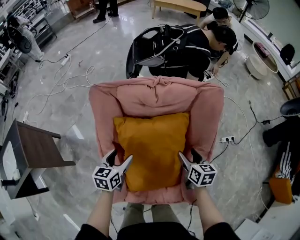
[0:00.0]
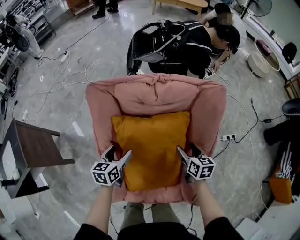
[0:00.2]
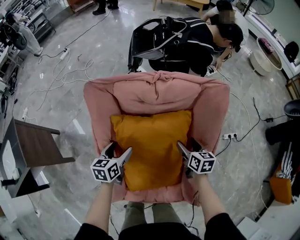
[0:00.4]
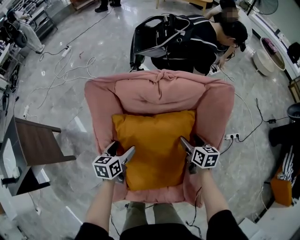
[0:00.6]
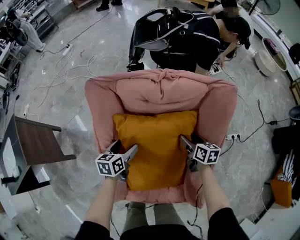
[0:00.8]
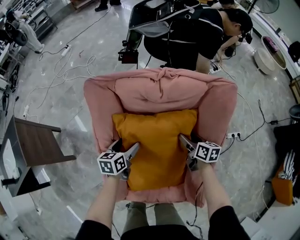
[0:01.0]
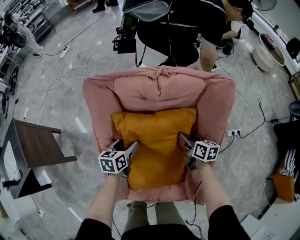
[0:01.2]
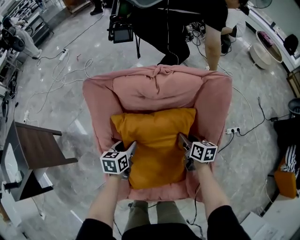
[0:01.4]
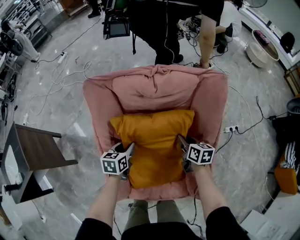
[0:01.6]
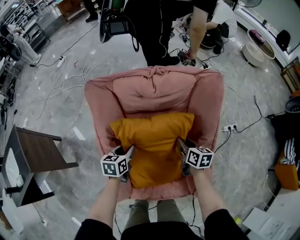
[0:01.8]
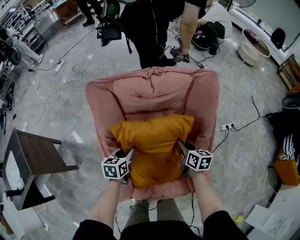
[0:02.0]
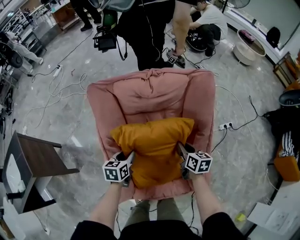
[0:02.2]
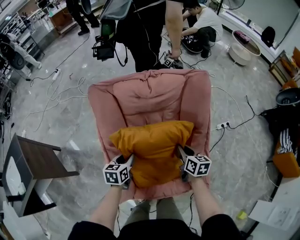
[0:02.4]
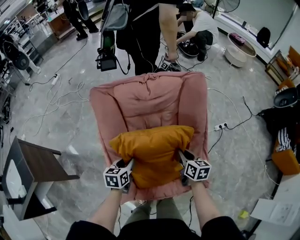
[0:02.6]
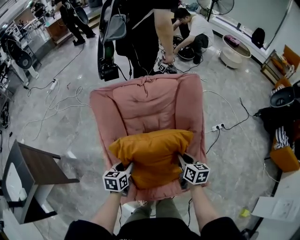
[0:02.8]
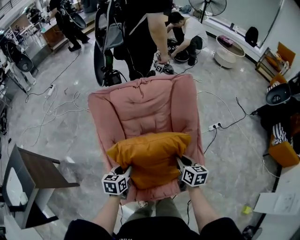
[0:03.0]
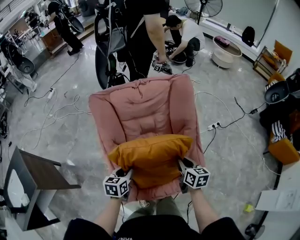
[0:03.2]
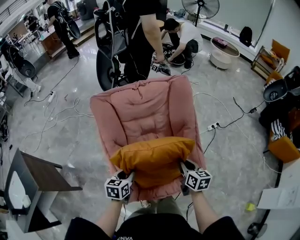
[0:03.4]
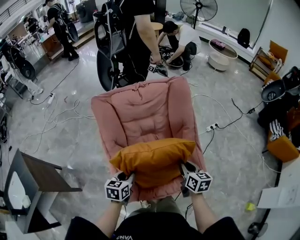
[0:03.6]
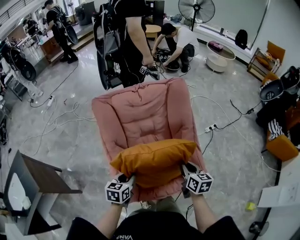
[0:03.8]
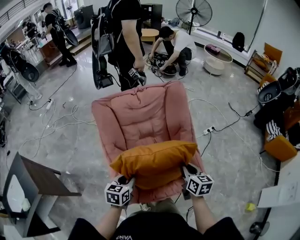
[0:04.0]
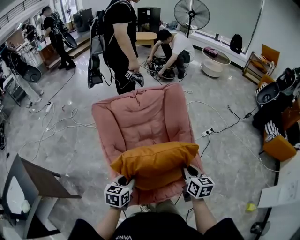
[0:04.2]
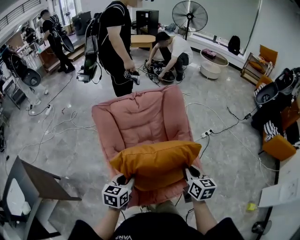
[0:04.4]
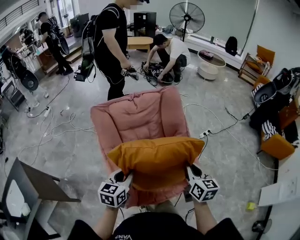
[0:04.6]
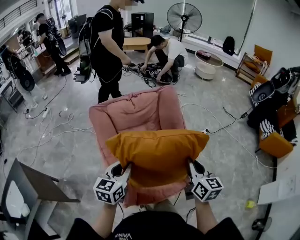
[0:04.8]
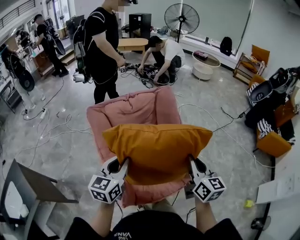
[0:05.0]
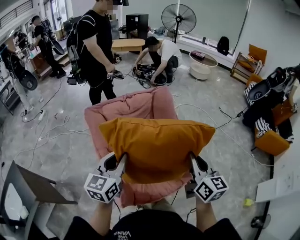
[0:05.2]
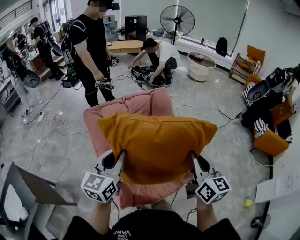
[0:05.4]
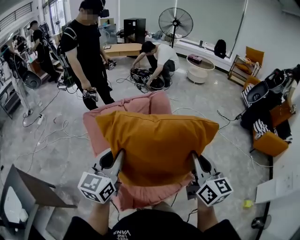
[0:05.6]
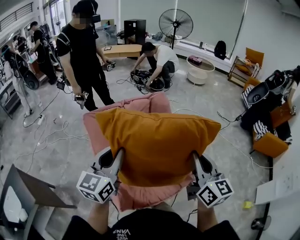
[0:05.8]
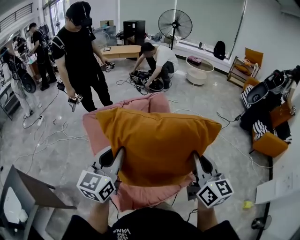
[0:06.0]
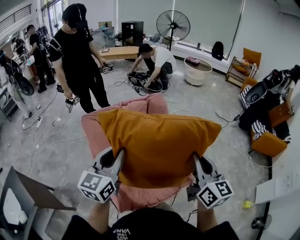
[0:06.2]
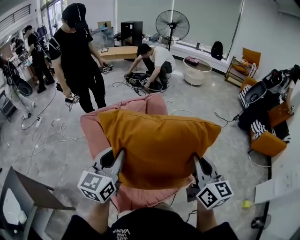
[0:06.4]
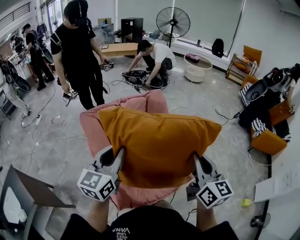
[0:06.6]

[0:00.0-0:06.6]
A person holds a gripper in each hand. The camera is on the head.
0.0 to 1.6 s: The two grippers go some 5 cm downward. The right gripper closes its fingers, while the left gripper closes its fingers.
1.6 to 3.2 s: The two grippers go about 20 cm backward and upward.
3.2 to 5.0 s: The right gripper travels upward and backward by approximately 25 cm, and swivels approximately 30 degrees; the left gripper is displaced upward by approximately 25 cm, and rotates roughly 30 degrees.
5.0 to 6.6 s: Both grippers move upward, approximately 10 cm.

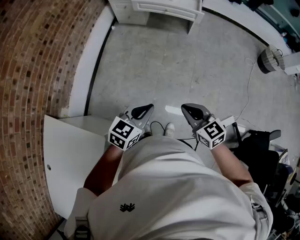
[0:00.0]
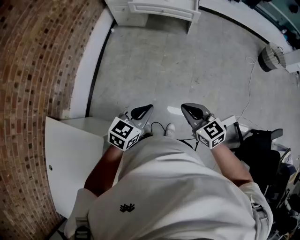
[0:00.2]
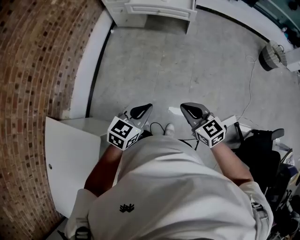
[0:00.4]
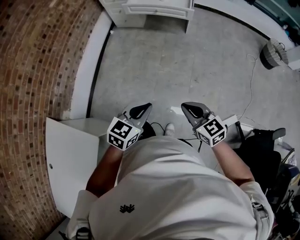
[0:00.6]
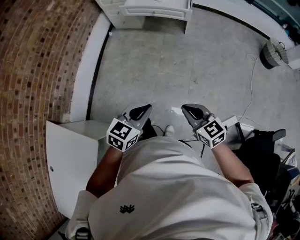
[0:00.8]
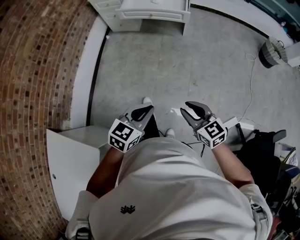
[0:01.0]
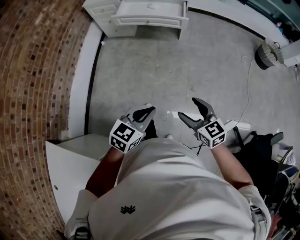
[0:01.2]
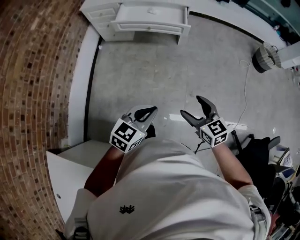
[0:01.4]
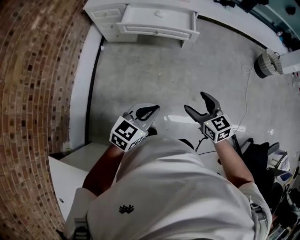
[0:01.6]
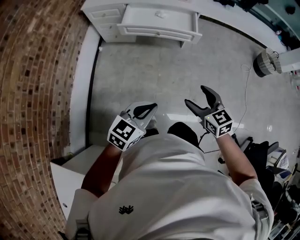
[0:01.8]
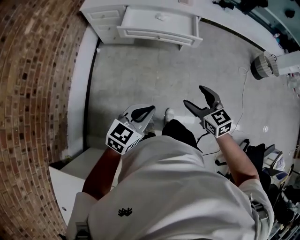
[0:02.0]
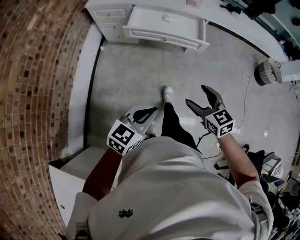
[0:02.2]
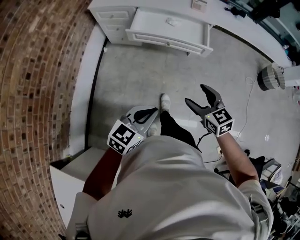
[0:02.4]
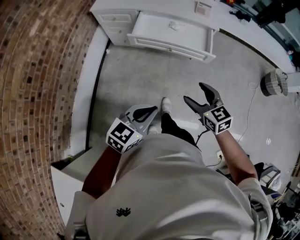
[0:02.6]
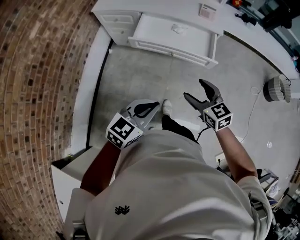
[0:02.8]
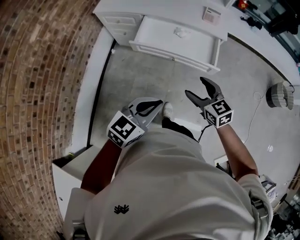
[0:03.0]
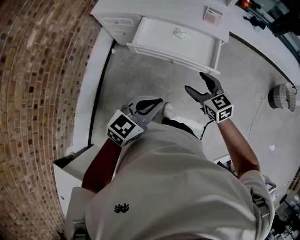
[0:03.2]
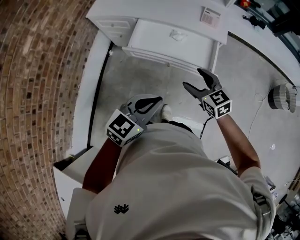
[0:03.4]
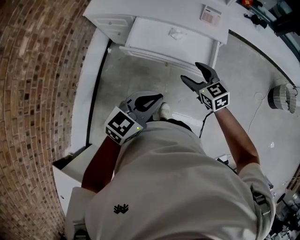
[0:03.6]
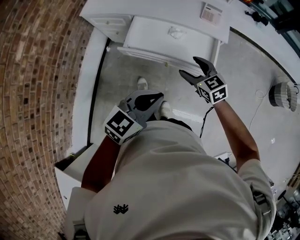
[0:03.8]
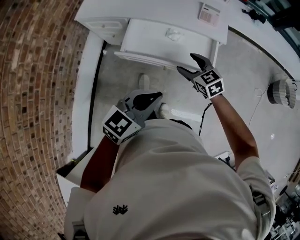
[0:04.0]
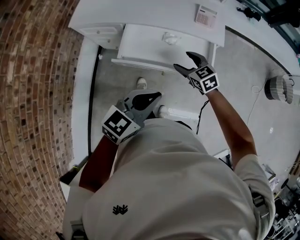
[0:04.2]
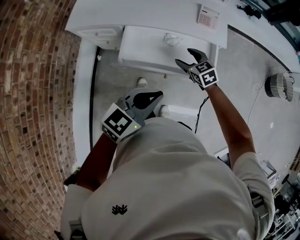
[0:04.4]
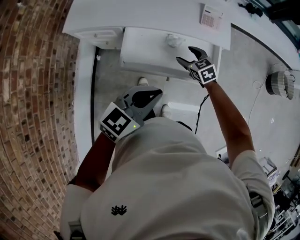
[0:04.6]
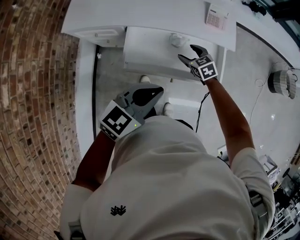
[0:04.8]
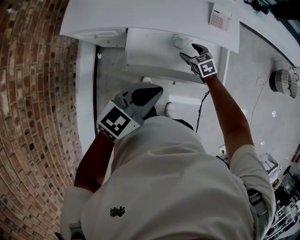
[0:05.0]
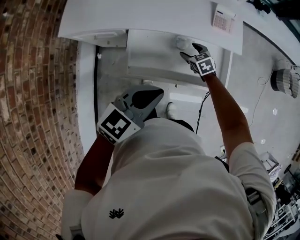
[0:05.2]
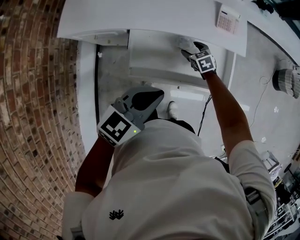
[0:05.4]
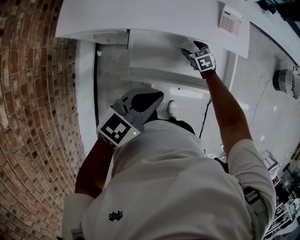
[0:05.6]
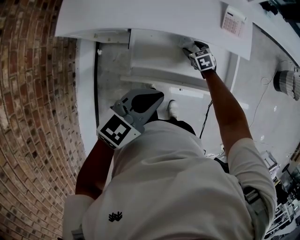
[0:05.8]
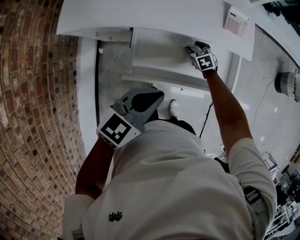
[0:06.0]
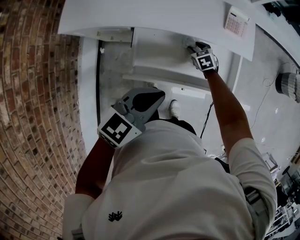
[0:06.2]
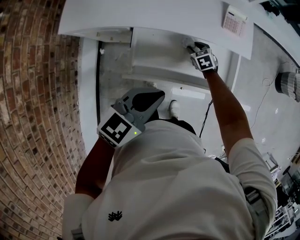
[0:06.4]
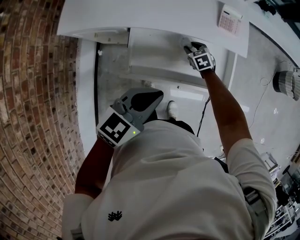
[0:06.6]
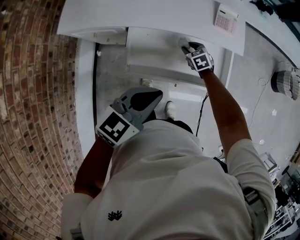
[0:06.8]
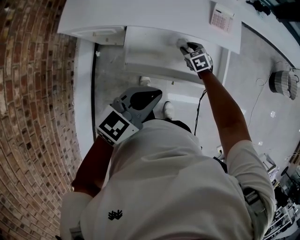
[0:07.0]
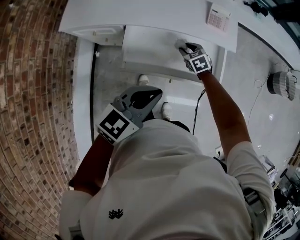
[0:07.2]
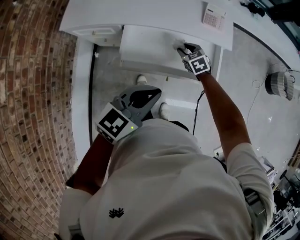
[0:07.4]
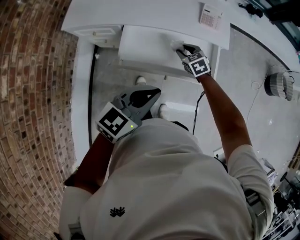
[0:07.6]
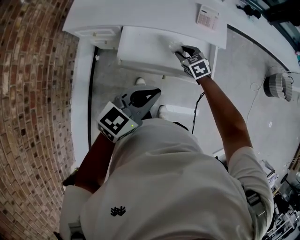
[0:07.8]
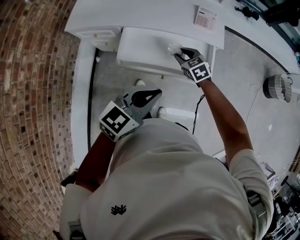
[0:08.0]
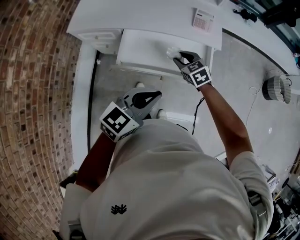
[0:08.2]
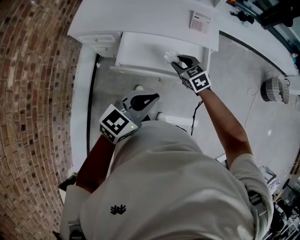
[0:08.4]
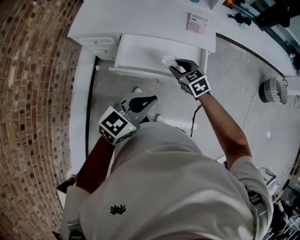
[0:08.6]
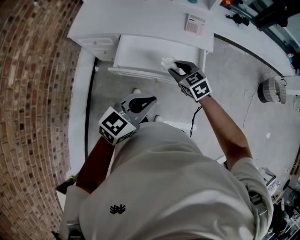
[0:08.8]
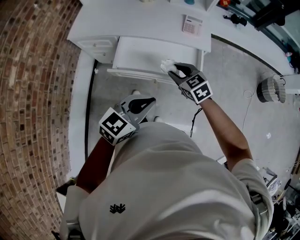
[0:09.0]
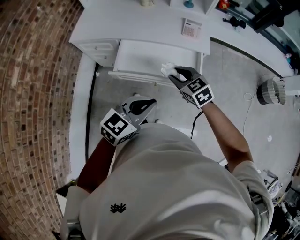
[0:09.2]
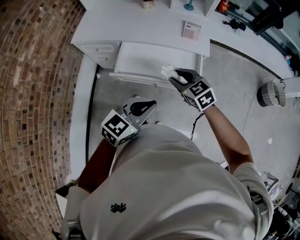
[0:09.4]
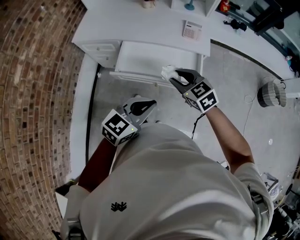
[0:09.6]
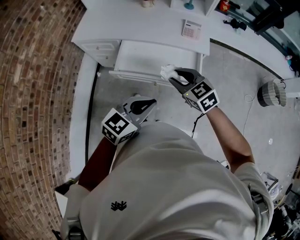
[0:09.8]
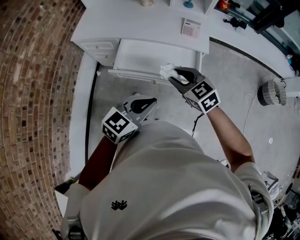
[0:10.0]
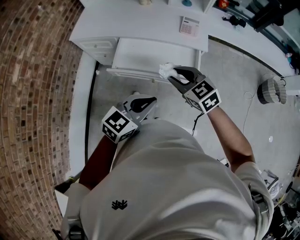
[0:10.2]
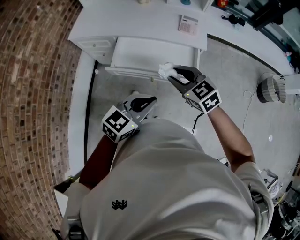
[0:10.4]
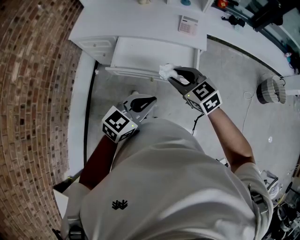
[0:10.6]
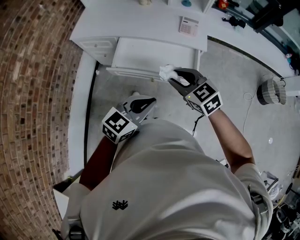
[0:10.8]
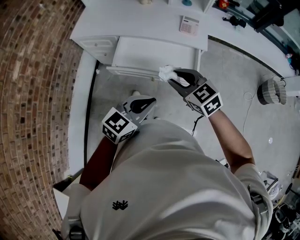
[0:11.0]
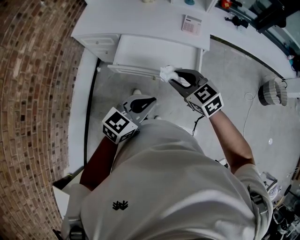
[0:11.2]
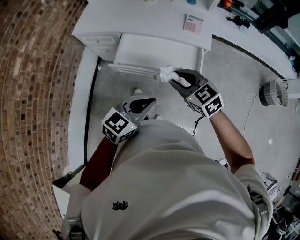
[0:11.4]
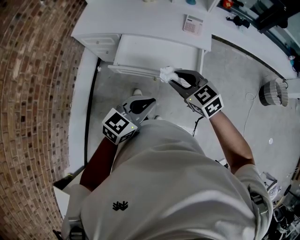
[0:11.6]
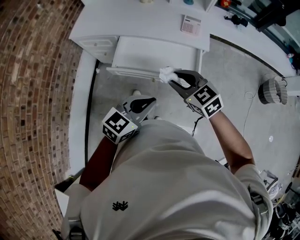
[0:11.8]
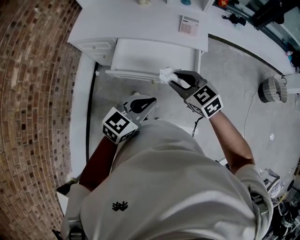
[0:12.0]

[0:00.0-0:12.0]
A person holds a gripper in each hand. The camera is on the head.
0.0 to 1.6 s: The grippers both shift forward by about 25 cm. The right gripper opens its fingers.
1.6 to 3.0 s: Both grippers travel together forward, some 30 cm.
3.0 to 4.4 s: The right gripper moves forward and downward, some 35 cm; the left gripper is displaced forward by approximately 25 cm.
4.4 to 6.0 s: The right gripper heads downward and forward, covering about 25 cm, and rotates approximately 20 degrees; the left gripper heads forward, to the left and downward, covering some 15 cm.
6.0 to 7.6 s: The left gripper heads to the right, backward and upward, covering some 15 cm; the right gripper goes roughly 15 cm upward and backward.
7.6 to 9.0 s: The left gripper moves backward, roughly 10 cm, while the right gripper shifts about 20 cm upward and backward.
9.0 to 10.4 s: The right gripper moves upward and backward, roughly 10 cm.
10.4 to 12.0 s: The grippers move only a little.

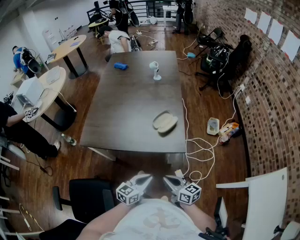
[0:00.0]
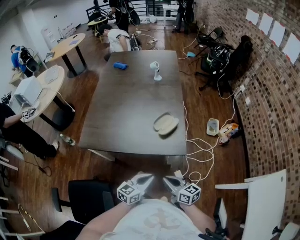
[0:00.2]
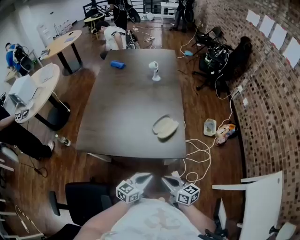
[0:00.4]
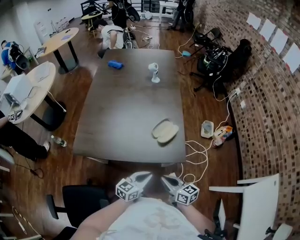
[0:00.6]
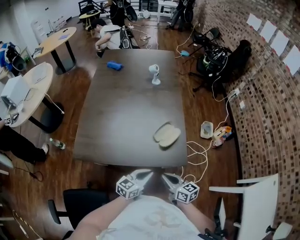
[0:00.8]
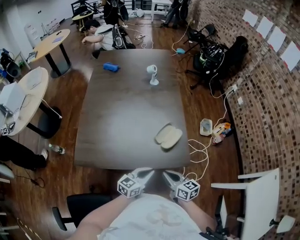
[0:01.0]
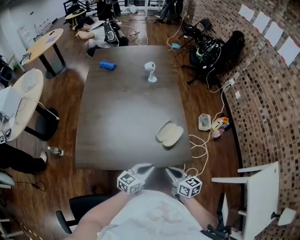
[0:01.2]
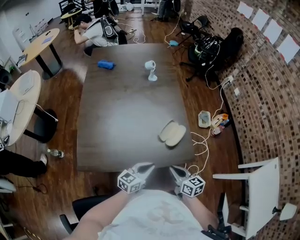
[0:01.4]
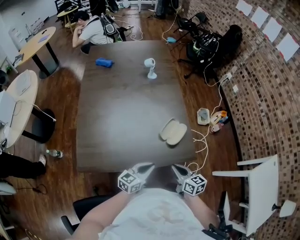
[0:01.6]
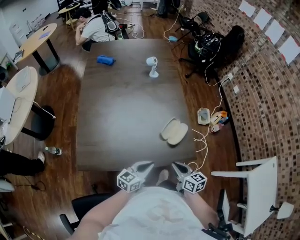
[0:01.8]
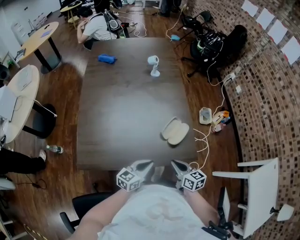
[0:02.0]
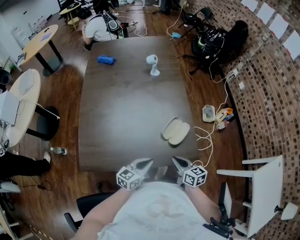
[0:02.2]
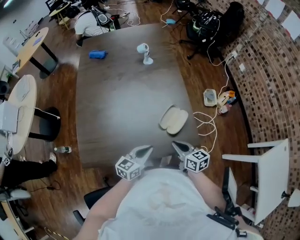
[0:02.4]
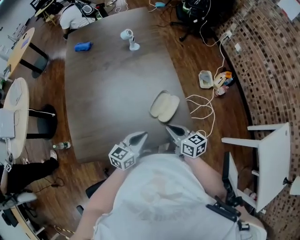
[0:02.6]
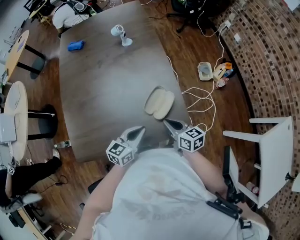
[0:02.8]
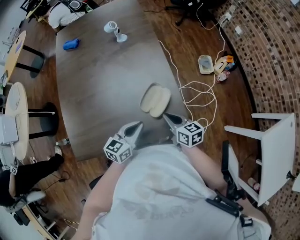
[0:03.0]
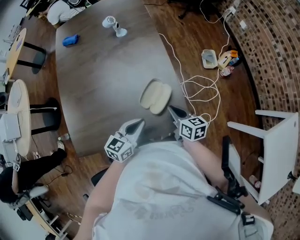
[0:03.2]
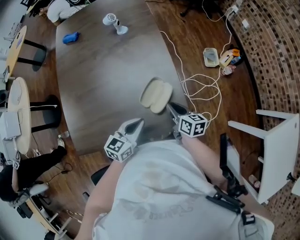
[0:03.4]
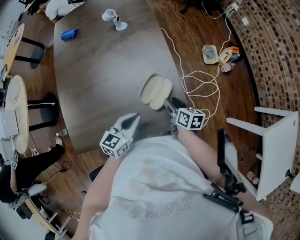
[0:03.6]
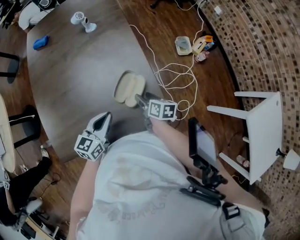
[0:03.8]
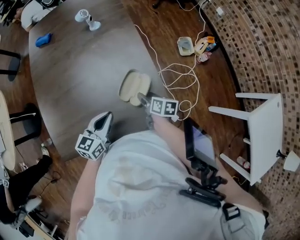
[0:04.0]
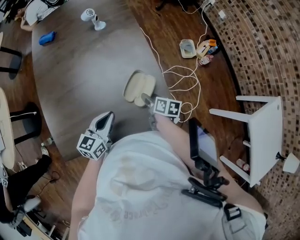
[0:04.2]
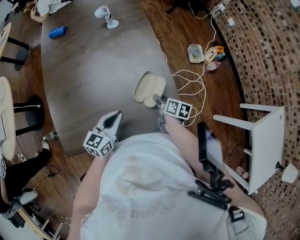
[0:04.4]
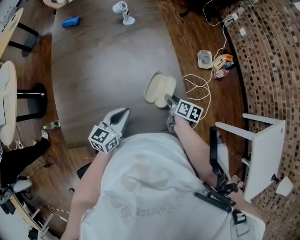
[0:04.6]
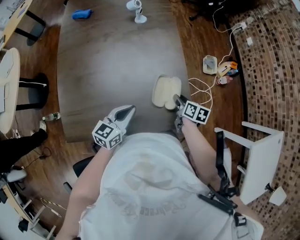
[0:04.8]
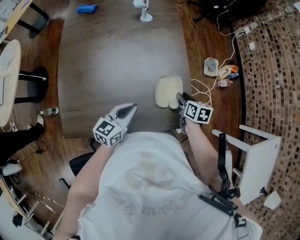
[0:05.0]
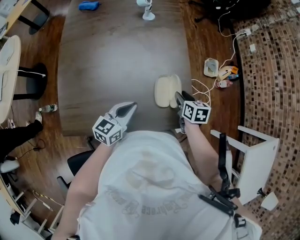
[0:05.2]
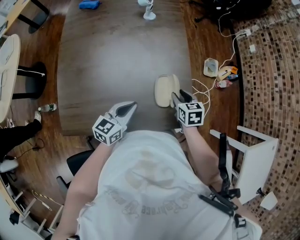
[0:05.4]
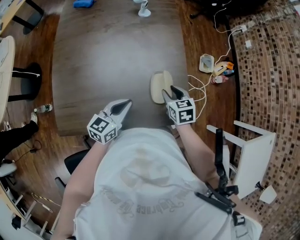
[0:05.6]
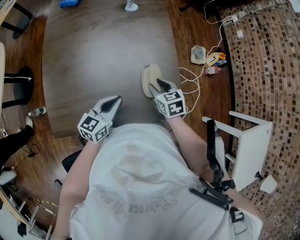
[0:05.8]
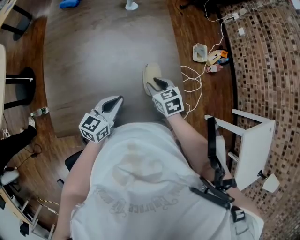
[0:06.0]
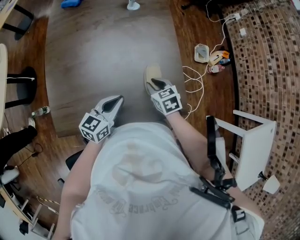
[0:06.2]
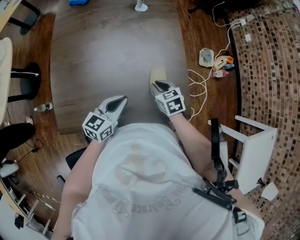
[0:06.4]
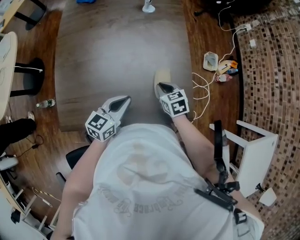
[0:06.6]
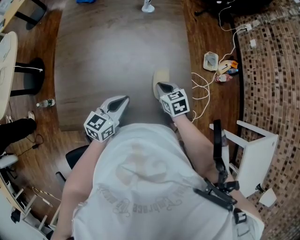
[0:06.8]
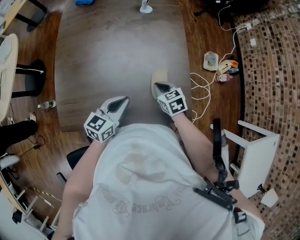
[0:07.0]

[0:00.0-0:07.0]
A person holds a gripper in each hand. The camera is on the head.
0.0 to 1.4 s: The grippers both shift forward and to the left by about 20 cm. The right gripper turns by roughly 20 degrees.
1.4 to 2.8 s: Both grippers travel together forward, about 10 cm.
2.8 to 4.2 s: The left gripper changes place by some 5 cm. Meanwhile the right gripper is displaced downward and forward by some 15 cm, changes its angle by about 30 degrees, and opens its fingers.
4.2 to 5.6 s: The right gripper heads upward, covering about 5 cm, and twists roughly 50 degrees counterclockwise, seen from behind.
5.6 to 7.0 s: The right gripper changes place by some 5 cm, and closes its fingers.
